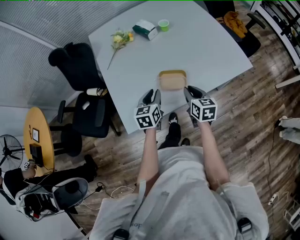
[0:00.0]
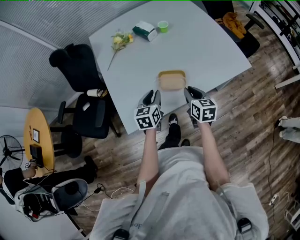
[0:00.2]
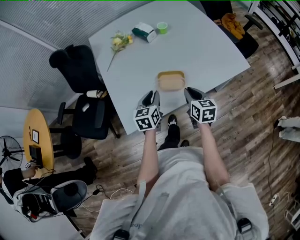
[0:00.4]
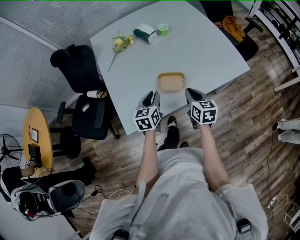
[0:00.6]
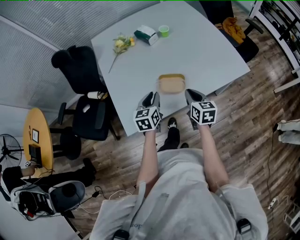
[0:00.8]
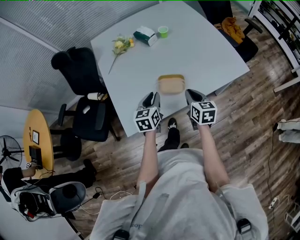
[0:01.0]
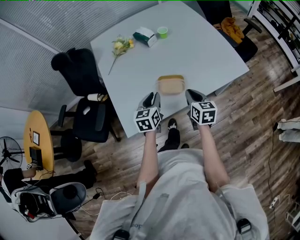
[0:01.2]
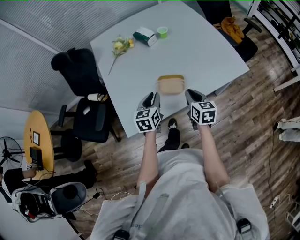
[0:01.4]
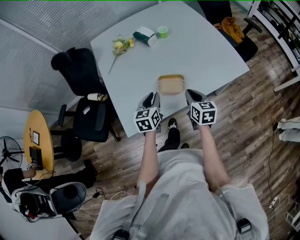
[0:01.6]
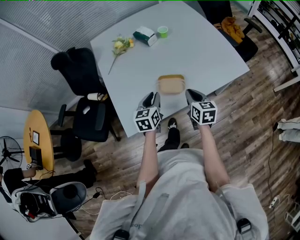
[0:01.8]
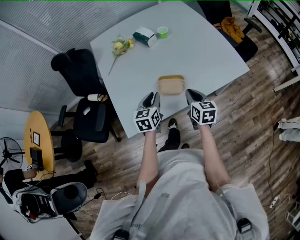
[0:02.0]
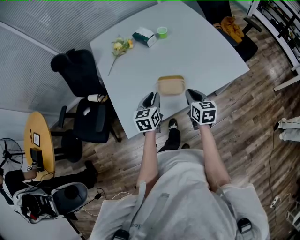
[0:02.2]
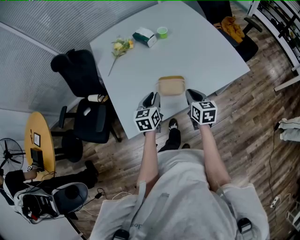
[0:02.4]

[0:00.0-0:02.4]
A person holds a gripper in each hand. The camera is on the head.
0:00.0 to 0:01.2: The grippers move only a little.
0:01.2 to 0:02.4: Both grippers stay put.

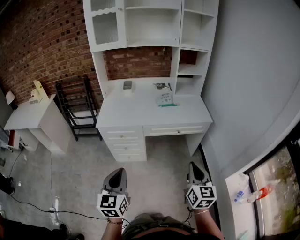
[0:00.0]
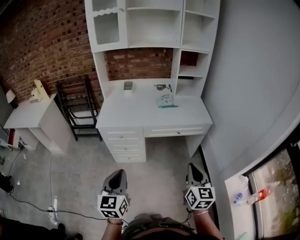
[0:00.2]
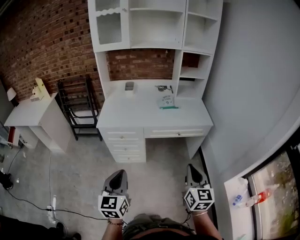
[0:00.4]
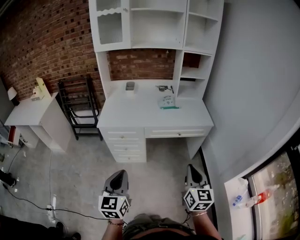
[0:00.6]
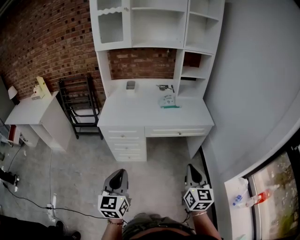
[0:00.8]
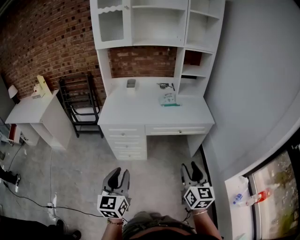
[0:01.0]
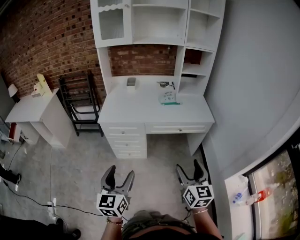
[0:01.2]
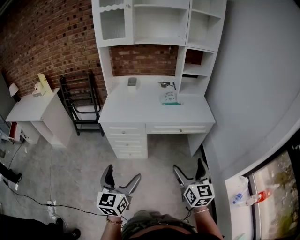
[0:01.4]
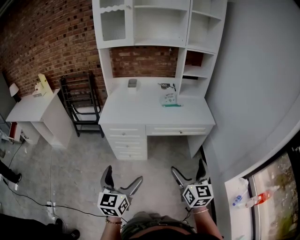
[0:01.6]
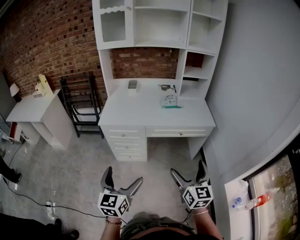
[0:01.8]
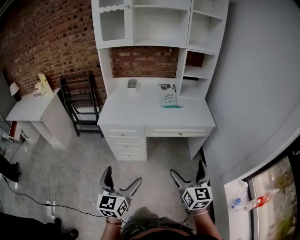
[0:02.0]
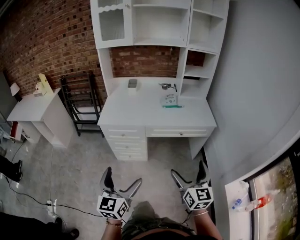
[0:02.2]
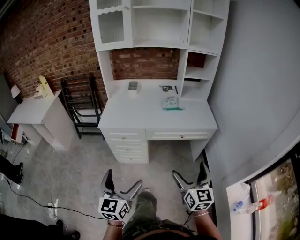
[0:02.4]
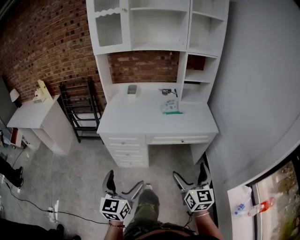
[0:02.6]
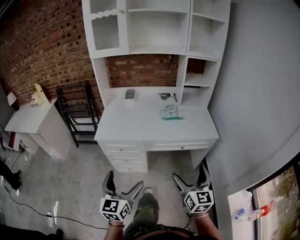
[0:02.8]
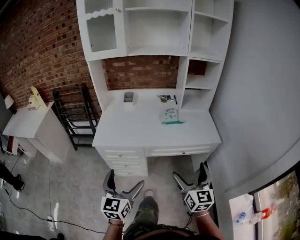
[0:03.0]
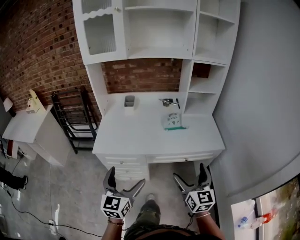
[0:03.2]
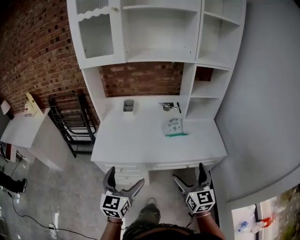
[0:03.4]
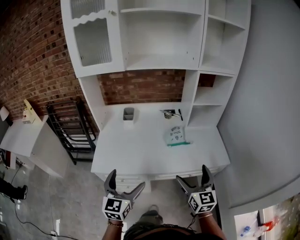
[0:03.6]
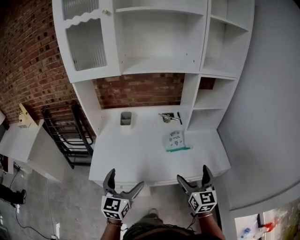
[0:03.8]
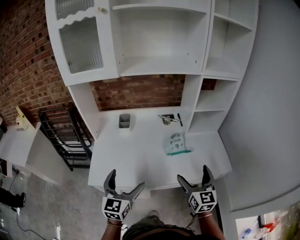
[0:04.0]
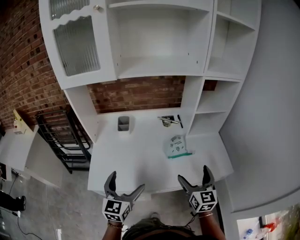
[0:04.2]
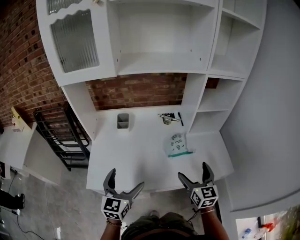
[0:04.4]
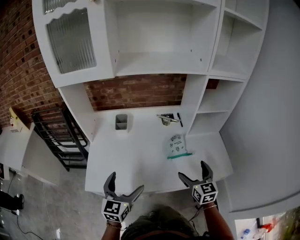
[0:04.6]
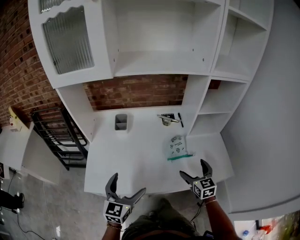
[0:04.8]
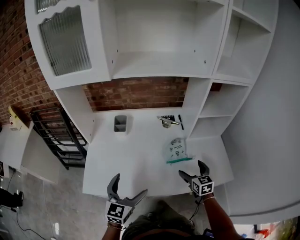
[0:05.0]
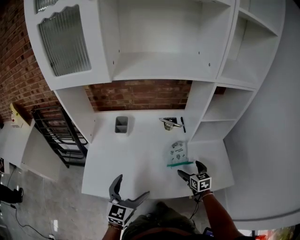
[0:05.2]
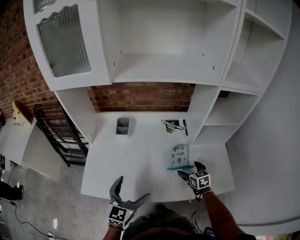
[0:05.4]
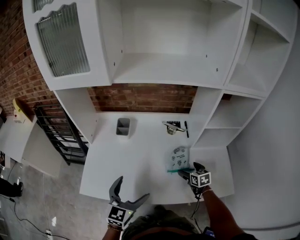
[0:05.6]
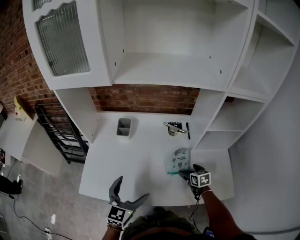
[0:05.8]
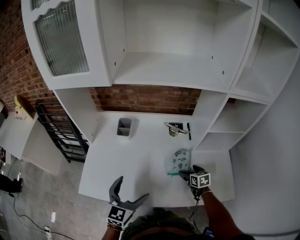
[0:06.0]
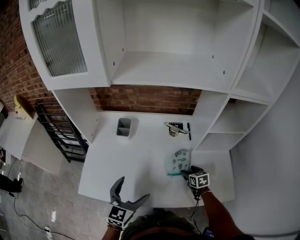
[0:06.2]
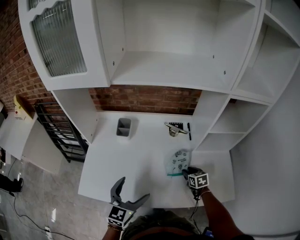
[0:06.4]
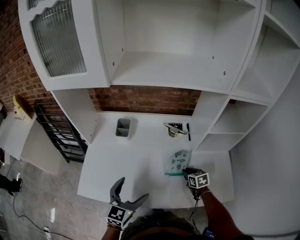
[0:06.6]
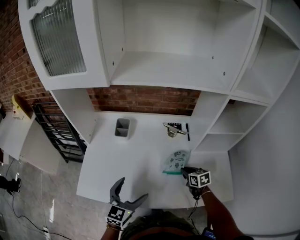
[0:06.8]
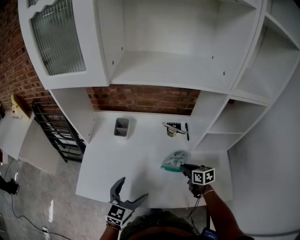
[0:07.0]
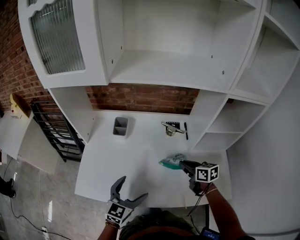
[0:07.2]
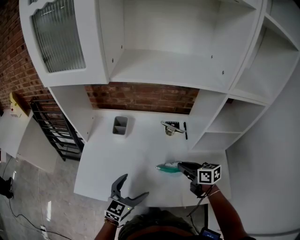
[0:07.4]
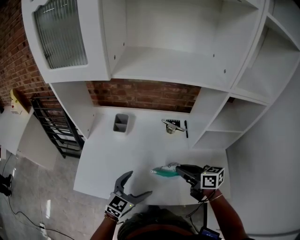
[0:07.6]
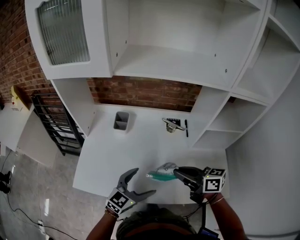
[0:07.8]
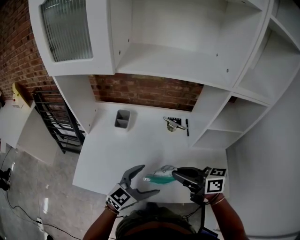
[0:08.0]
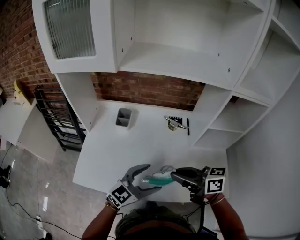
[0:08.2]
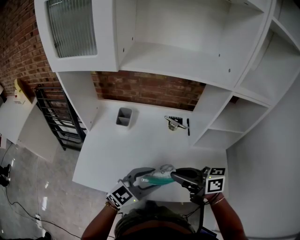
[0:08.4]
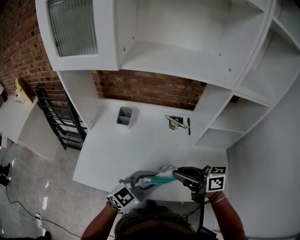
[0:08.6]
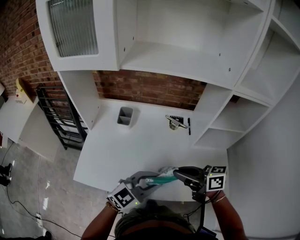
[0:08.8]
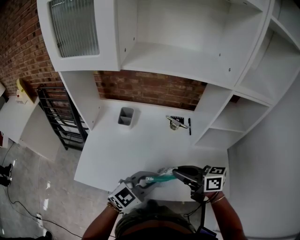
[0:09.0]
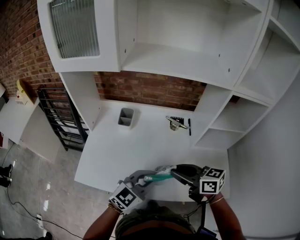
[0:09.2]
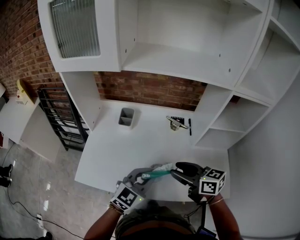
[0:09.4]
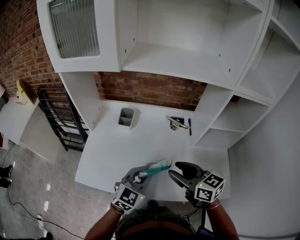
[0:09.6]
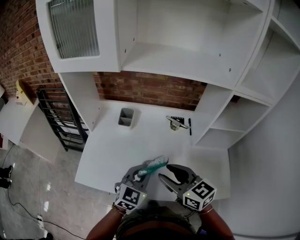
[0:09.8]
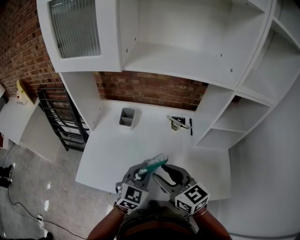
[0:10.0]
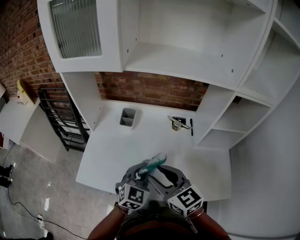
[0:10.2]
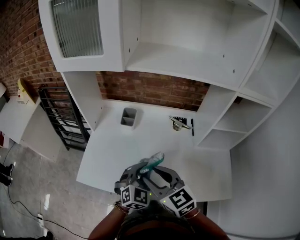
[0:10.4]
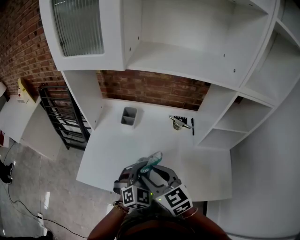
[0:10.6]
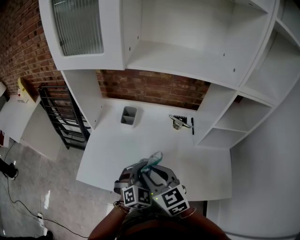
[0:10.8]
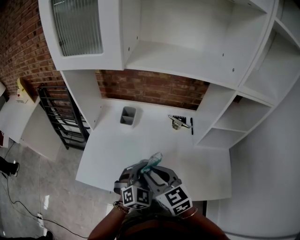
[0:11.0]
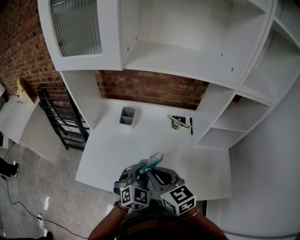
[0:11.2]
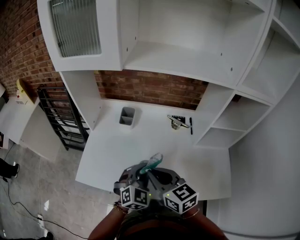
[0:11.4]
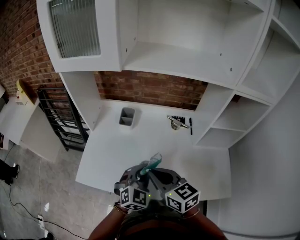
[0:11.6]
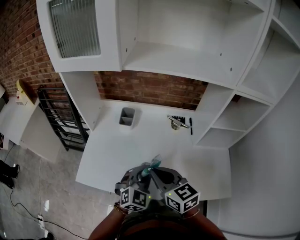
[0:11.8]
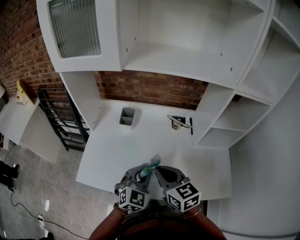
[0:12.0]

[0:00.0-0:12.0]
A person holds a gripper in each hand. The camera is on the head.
0:00.0 to 0:01.6: The left gripper opens its fingers. Meanwhile the right gripper opens up.
0:01.6 to 0:03.0: Both grippers travel together forward, roughly 15 cm.
0:03.0 to 0:04.4: The two grippers go approximately 30 cm forward.
0:04.4 to 0:06.0: The right gripper shifts approximately 30 cm downward and forward, and tilts its fingers about 30 degrees downward. Meanwhile the left gripper moves forward and to the right, roughly 10 cm.
0:06.0 to 0:07.6: The right gripper goes some 20 cm upward and to the left, changes its angle by approximately 40 degrees, and closes its fingers; the left gripper changes place by roughly 5 cm.
0:07.6 to 0:09.0: The right gripper moves roughly 10 cm. Meanwhile the left gripper ends up roughly 10 cm from where it was, rotates about 20 degrees, and closes its fingers.
0:09.0 to 0:10.4: The left gripper moves forward and to the left, some 10 cm, and changes its angle by some 40 degrees; the right gripper goes roughly 10 cm to the left, and changes its angle by roughly 40 degrees.
0:10.4 to 0:12.0: The grippers make only small movements.

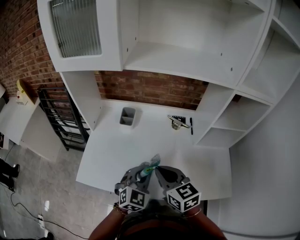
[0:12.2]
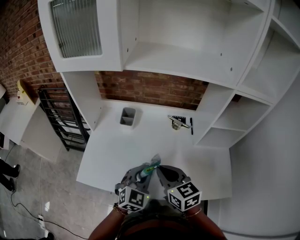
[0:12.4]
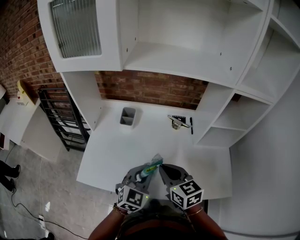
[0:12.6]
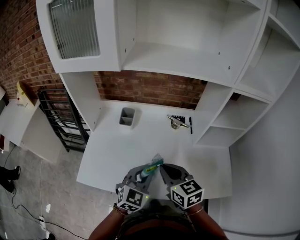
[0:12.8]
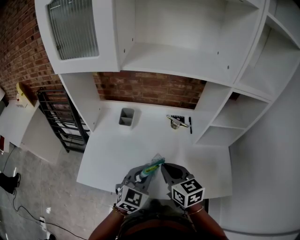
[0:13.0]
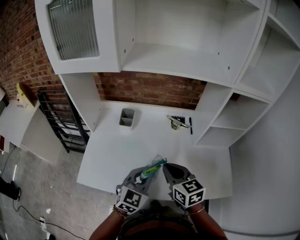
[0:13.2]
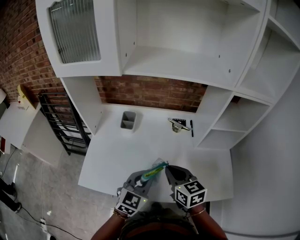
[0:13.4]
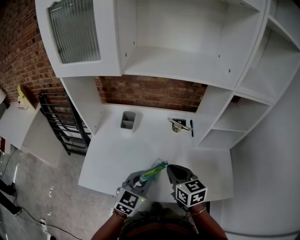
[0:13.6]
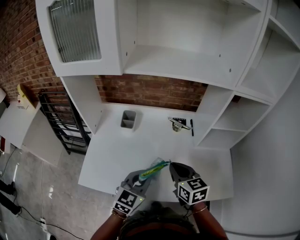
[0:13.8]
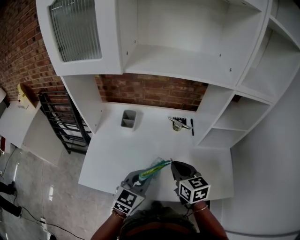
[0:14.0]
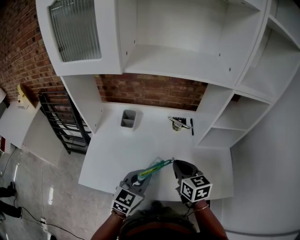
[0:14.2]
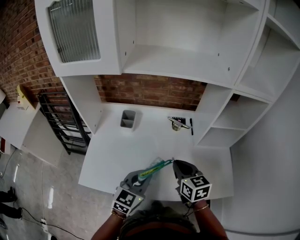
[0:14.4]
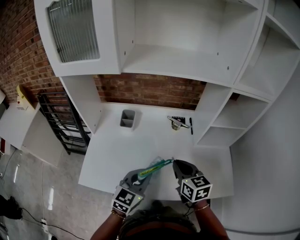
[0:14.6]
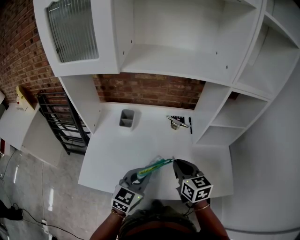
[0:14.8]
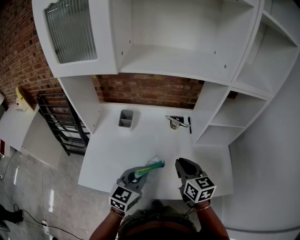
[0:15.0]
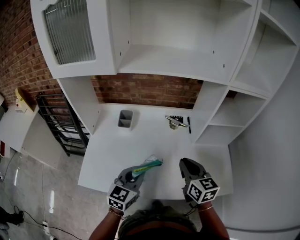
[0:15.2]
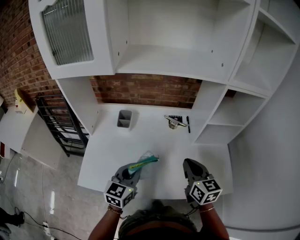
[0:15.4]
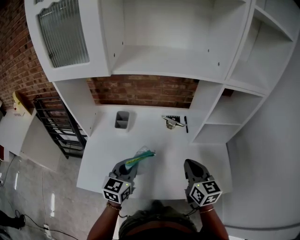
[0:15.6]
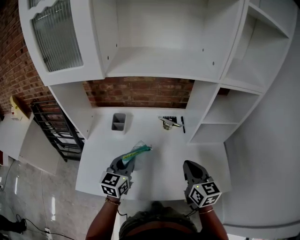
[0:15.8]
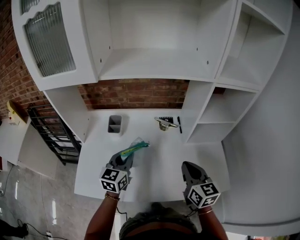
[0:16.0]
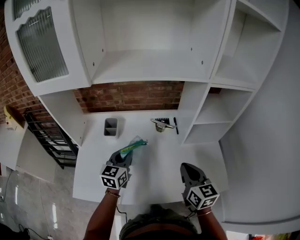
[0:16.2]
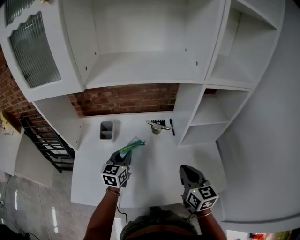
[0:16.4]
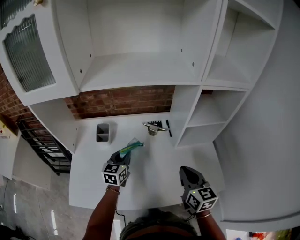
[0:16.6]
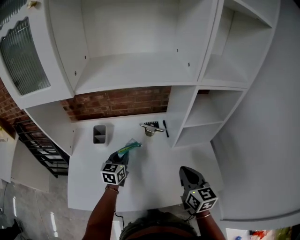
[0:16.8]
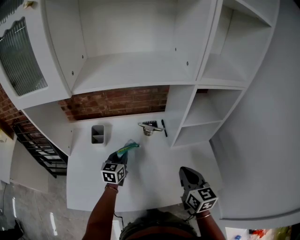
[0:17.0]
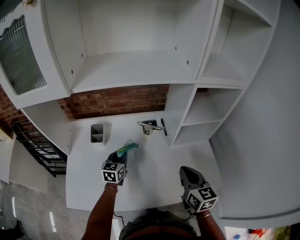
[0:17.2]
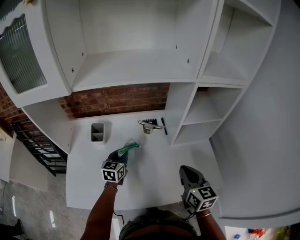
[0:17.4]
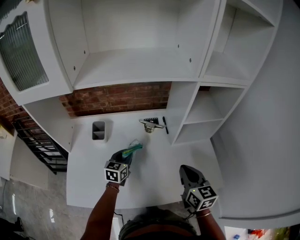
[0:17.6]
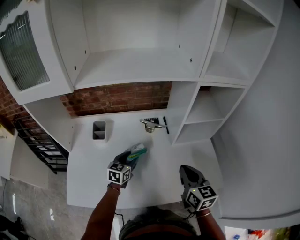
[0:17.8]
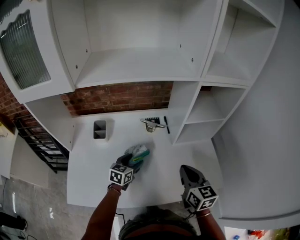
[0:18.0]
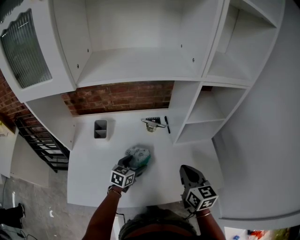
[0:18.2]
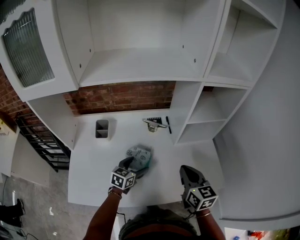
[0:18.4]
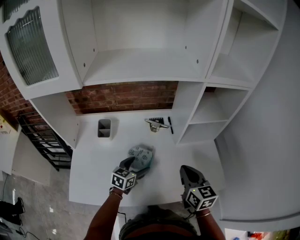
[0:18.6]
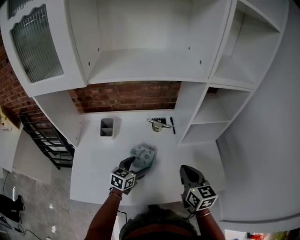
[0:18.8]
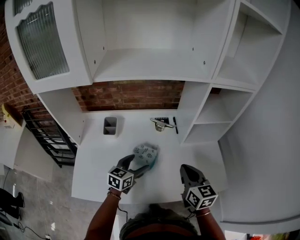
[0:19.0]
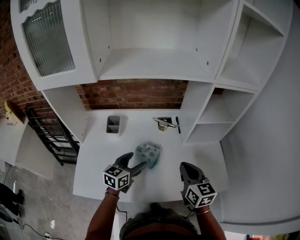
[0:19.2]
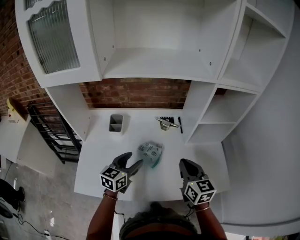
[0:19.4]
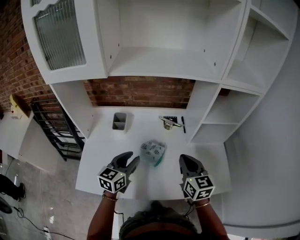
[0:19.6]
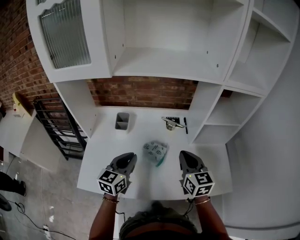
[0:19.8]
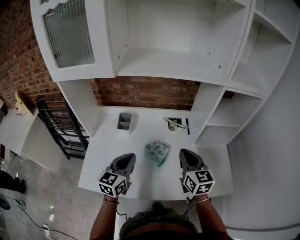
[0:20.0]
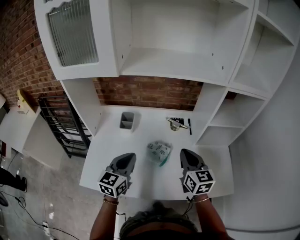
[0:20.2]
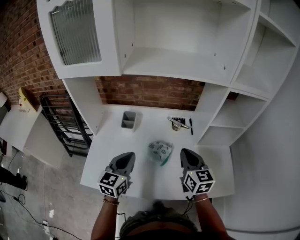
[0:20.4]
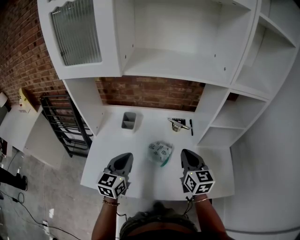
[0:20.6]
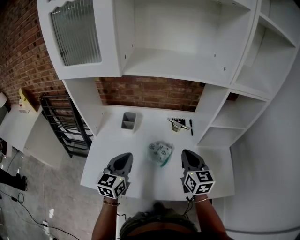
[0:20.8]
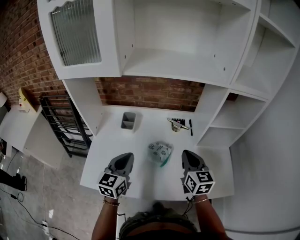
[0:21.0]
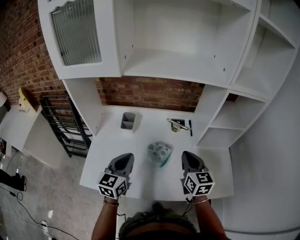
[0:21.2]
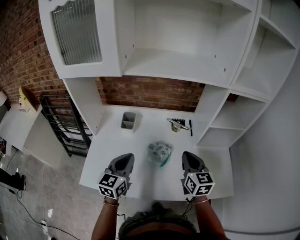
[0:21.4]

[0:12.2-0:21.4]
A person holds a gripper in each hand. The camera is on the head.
0:12.2 to 0:13.8: The left gripper changes its angle by about 20 degrees, while the right gripper travels to the right by approximately 5 cm.
0:13.8 to 0:15.2: The right gripper moves to the right, about 5 cm.
0:15.2 to 0:16.8: The left gripper heads forward, covering approximately 20 cm. Meanwhile the right gripper moves to the right, approximately 10 cm.
0:16.8 to 0:18.4: The left gripper goes approximately 10 cm downward, to the right and backward, changes its angle by roughly 20 degrees, and opens up.
0:18.4 to 0:19.8: The right gripper is displaced to the left by some 10 cm. Meanwhile the left gripper goes approximately 20 cm upward, to the left and backward, swivels roughly 20 degrees, and closes.
0:19.8 to 0:21.4: There are only small adjustments of the grippers.
